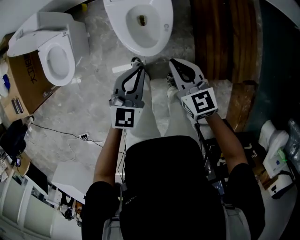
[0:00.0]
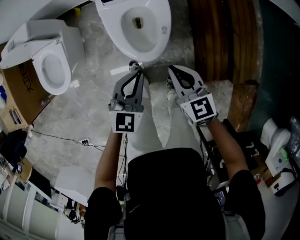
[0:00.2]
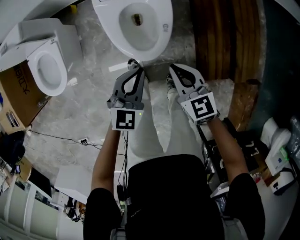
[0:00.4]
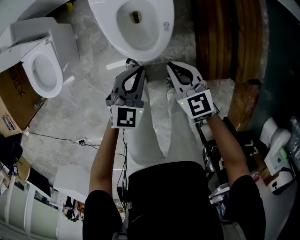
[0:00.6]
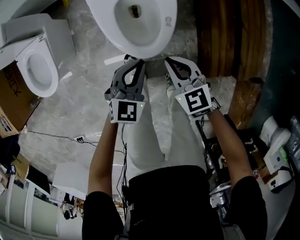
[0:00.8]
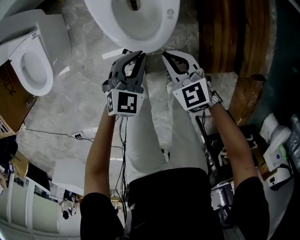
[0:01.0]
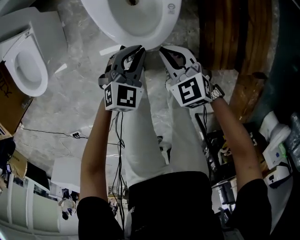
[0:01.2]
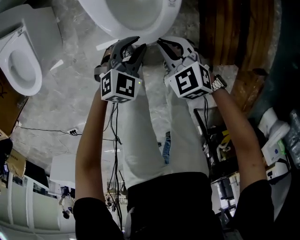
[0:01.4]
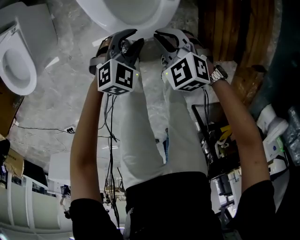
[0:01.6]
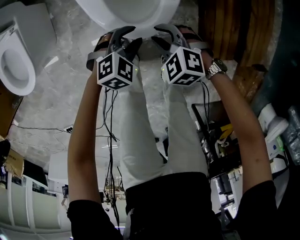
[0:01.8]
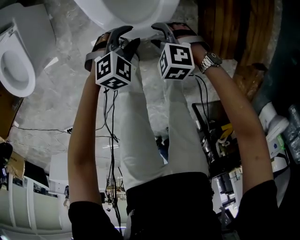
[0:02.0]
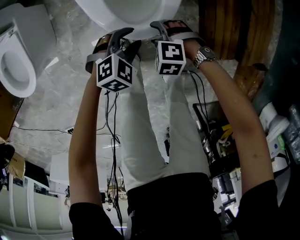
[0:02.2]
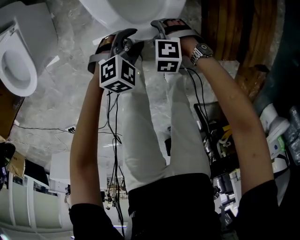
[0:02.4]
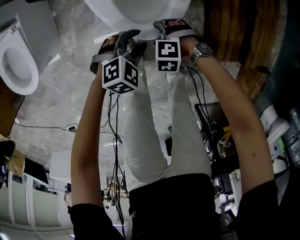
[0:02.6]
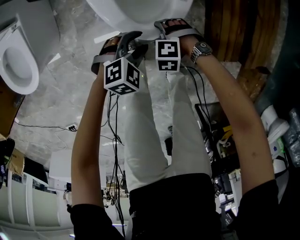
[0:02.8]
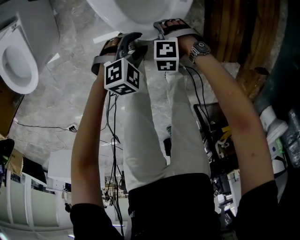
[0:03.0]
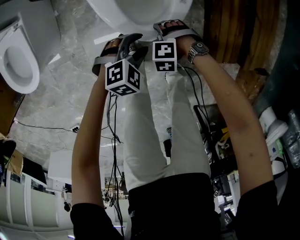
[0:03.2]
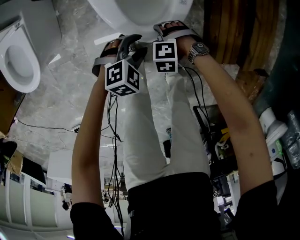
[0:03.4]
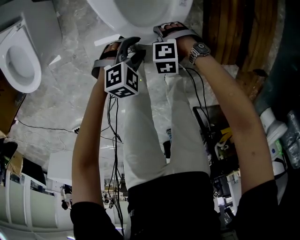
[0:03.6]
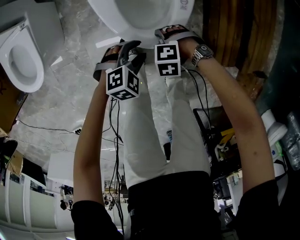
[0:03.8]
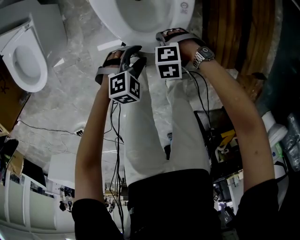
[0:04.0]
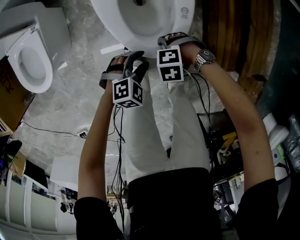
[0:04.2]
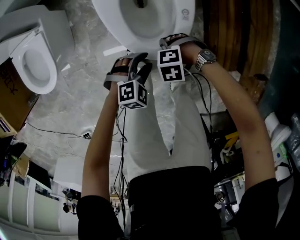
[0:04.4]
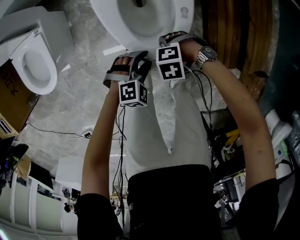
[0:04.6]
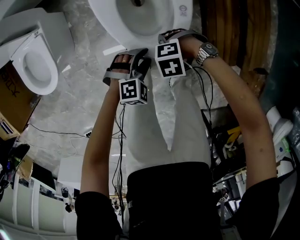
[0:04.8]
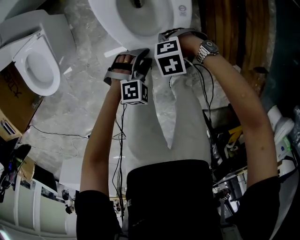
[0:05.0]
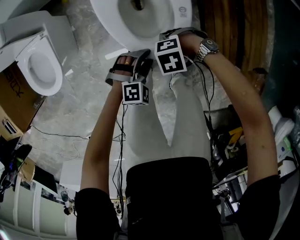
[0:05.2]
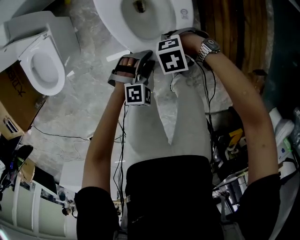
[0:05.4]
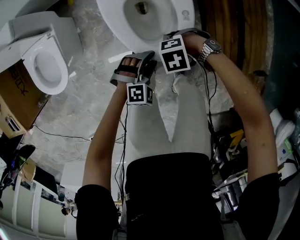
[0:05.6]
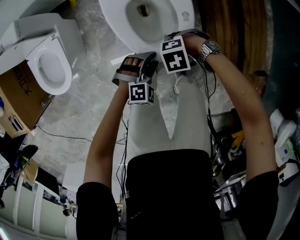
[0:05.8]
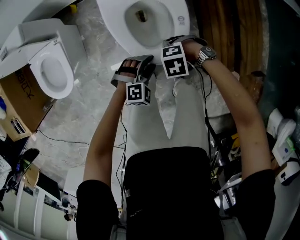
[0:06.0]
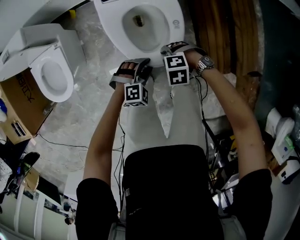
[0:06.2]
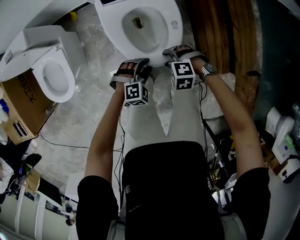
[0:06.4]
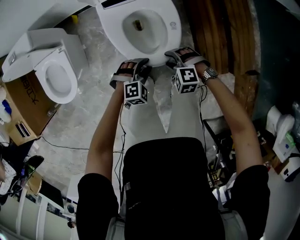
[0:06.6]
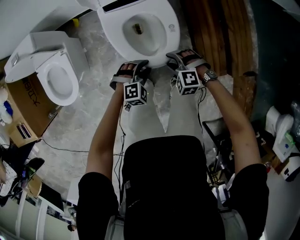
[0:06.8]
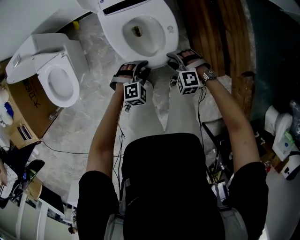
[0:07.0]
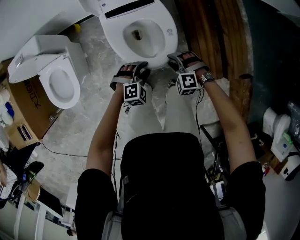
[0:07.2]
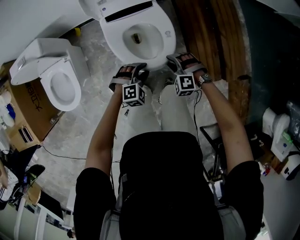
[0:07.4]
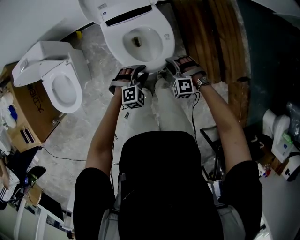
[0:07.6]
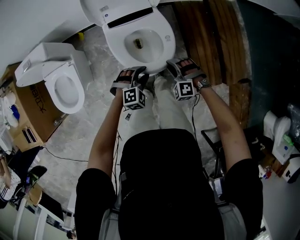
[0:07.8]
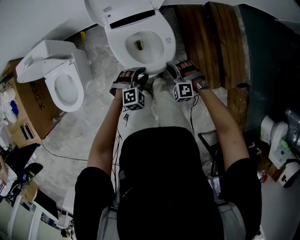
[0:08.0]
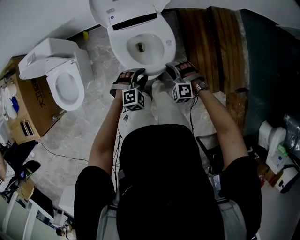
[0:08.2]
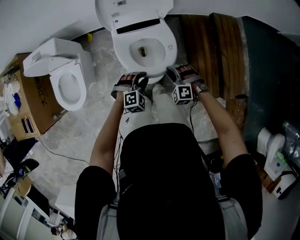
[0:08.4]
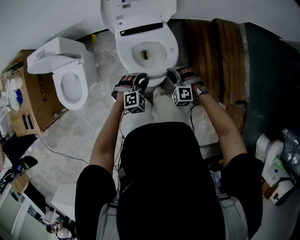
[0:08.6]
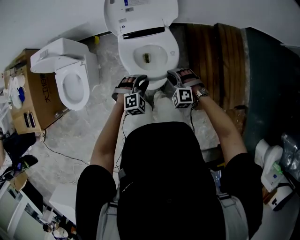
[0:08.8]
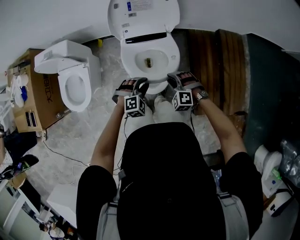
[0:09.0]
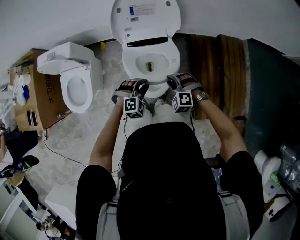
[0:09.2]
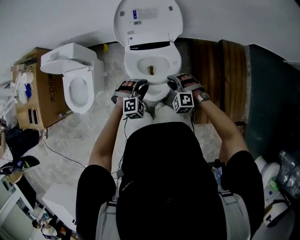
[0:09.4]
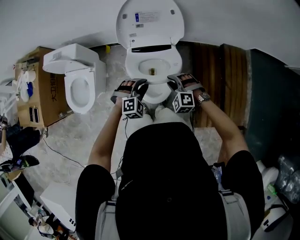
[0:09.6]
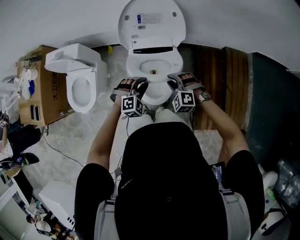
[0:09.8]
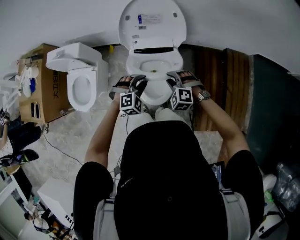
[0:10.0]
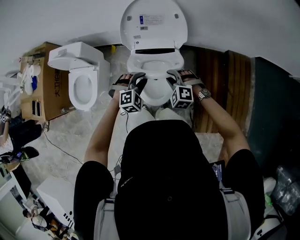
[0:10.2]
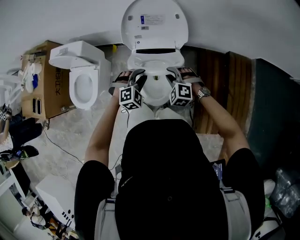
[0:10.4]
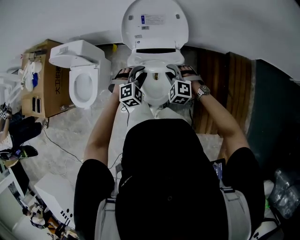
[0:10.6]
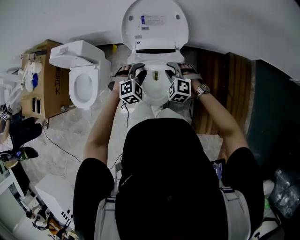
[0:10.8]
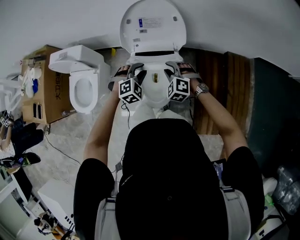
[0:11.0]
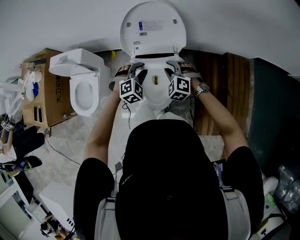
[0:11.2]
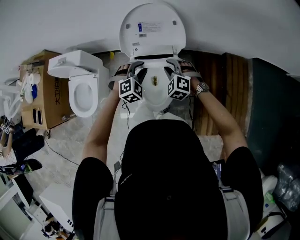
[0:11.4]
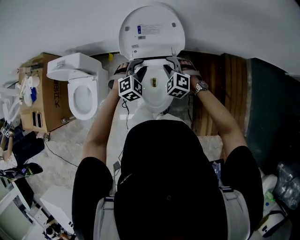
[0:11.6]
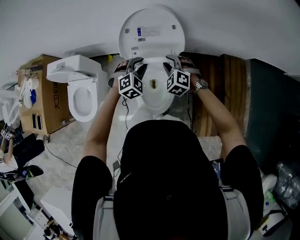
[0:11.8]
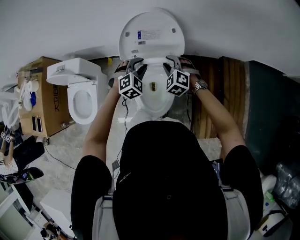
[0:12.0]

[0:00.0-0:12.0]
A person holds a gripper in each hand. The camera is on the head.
0.0 to 1.6 s: The grippers both shift downward by about 35 cm. The right gripper rotates approximately 40 degrees, while the left gripper turns by about 40 degrees, and opens.
1.6 to 3.0 s: The right gripper moves downward, approximately 15 cm, swivels about 40 degrees, and opens its fingers.
3.0 to 4.4 s: The right gripper shifts roughly 10 cm upward, while the left gripper travels upward by roughly 5 cm.
4.4 to 6.0 s: The grippers both shift upward by roughly 10 cm.
6.0 to 7.6 s: Both grippers travel together upward, approximately 10 cm. The right gripper turns by roughly 50 degrees, and closes.
7.6 to 9.0 s: The left gripper goes approximately 5 cm upward. Meanwhile the right gripper moves upward and forward, some 10 cm.
9.0 to 10.4 s: The two grippers go approximately 10 cm forward and upward.
10.4 to 12.0 s: The grippers both shift forward by about 15 cm.

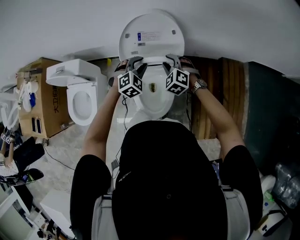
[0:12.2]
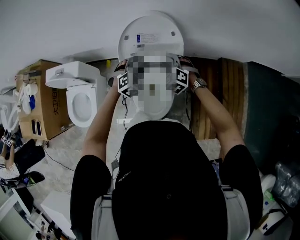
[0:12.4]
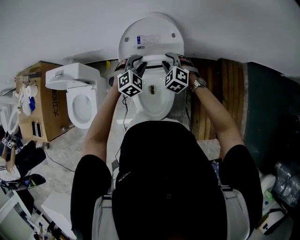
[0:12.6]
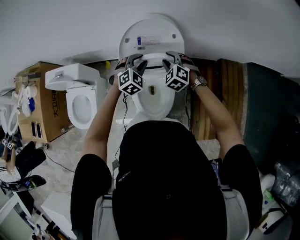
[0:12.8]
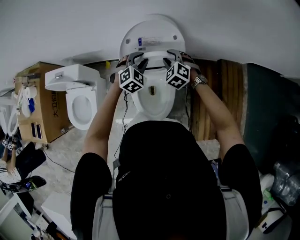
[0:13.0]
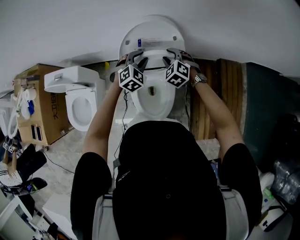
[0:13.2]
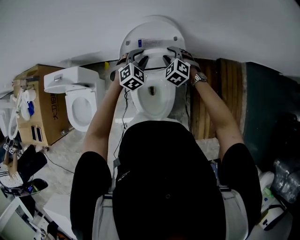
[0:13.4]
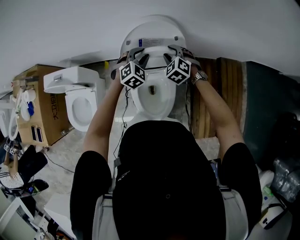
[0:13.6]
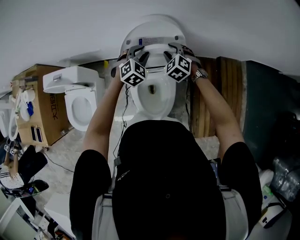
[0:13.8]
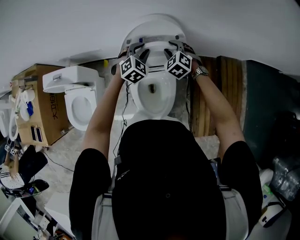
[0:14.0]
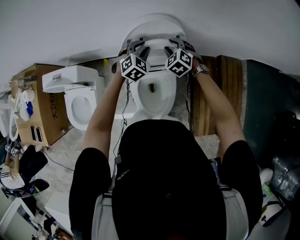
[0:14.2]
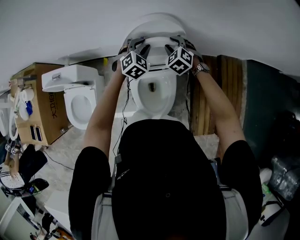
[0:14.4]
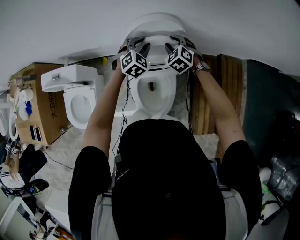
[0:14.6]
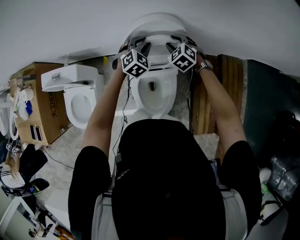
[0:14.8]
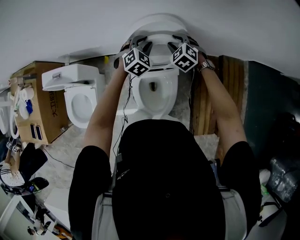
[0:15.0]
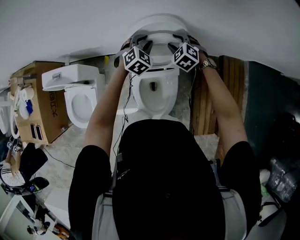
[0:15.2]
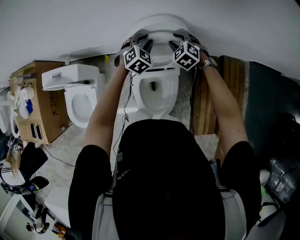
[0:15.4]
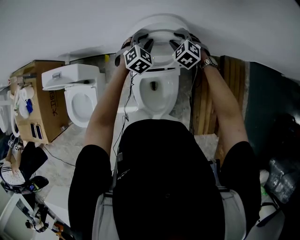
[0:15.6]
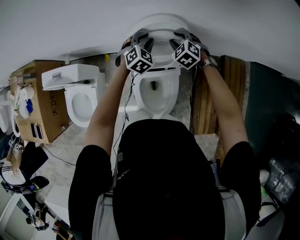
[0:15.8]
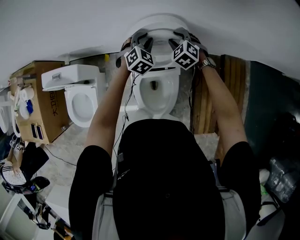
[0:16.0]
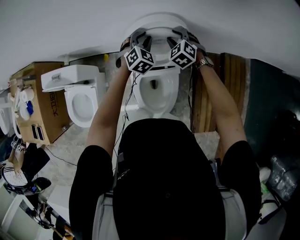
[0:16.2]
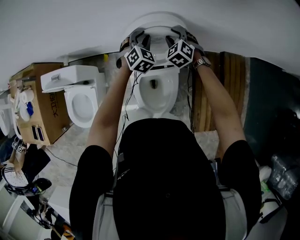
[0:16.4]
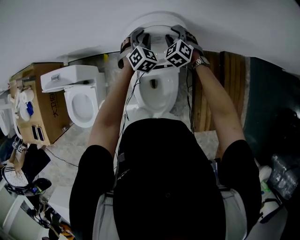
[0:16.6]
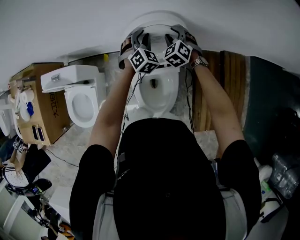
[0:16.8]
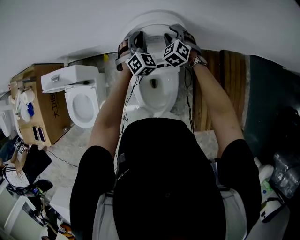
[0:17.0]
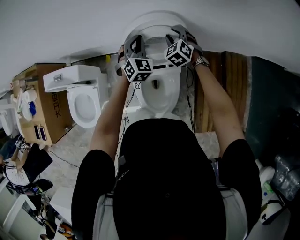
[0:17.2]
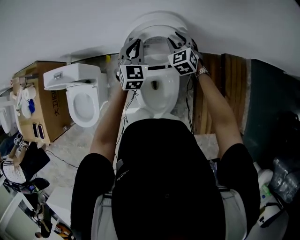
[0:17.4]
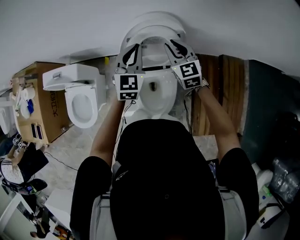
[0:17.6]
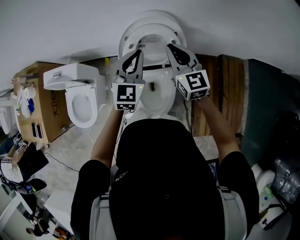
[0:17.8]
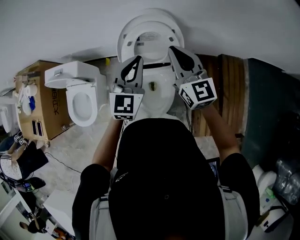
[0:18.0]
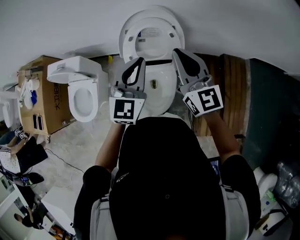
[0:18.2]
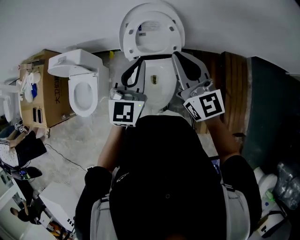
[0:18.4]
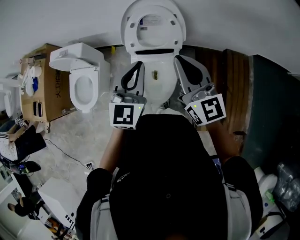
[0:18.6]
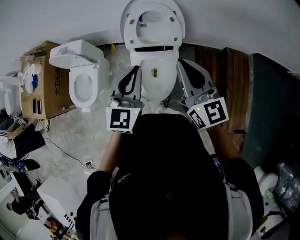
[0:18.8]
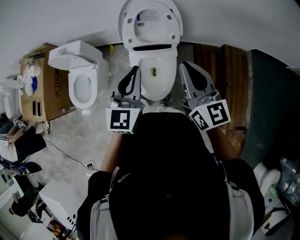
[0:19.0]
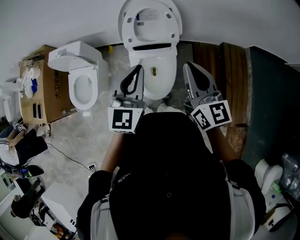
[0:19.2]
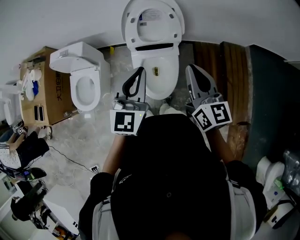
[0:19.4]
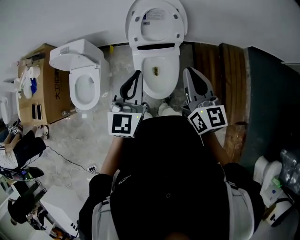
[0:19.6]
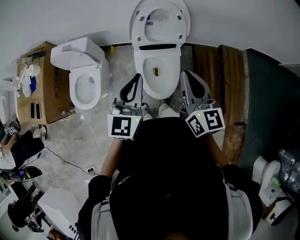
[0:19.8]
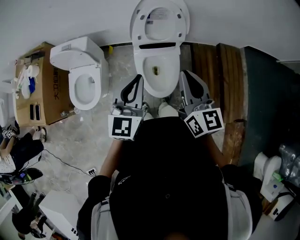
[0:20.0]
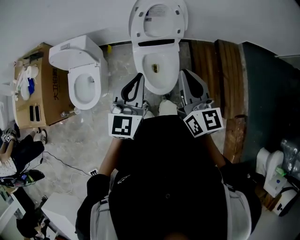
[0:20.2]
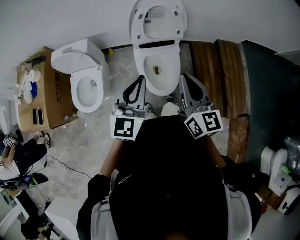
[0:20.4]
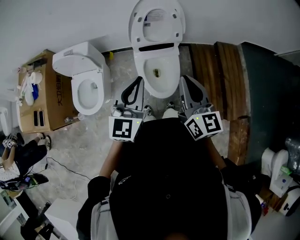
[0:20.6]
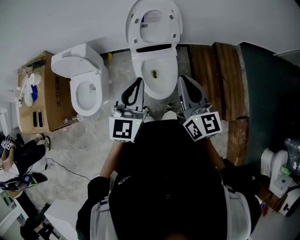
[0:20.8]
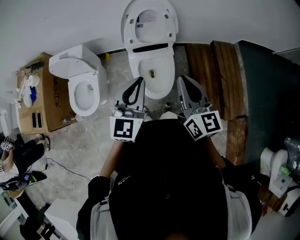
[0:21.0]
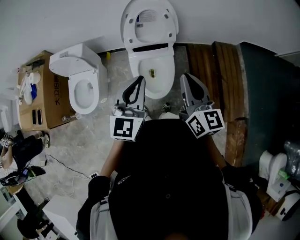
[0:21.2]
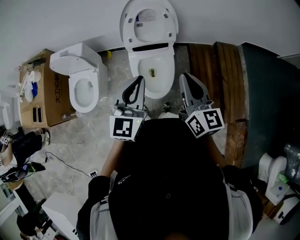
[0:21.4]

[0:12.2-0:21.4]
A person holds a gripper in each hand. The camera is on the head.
12.2 to 13.8 s: Both grippers move forward, some 10 cm.
13.8 to 15.2 s: Both grippers travel together forward, approximately 5 cm.
15.2 to 16.8 s: The grippers move only a little.
16.8 to 18.4 s: The two grippers go roughly 40 cm backward and upward. The right gripper tips its fingers upward by roughly 50 degrees, and closes; the left gripper swivels about 40 degrees, and closes up.
18.4 to 19.8 s: Both grippers travel together backward and to the left, roughly 20 cm.
19.8 to 21.4 s: Both grippers travel together to the right, approximately 10 cm.

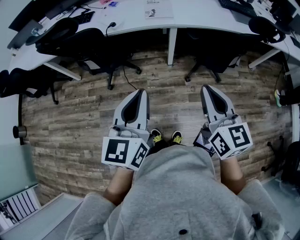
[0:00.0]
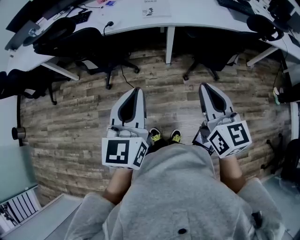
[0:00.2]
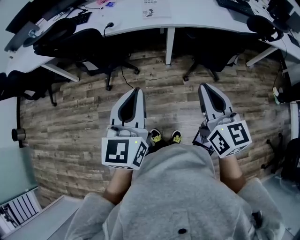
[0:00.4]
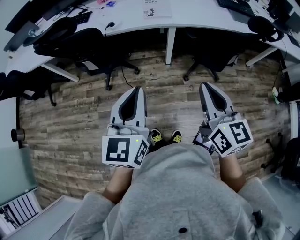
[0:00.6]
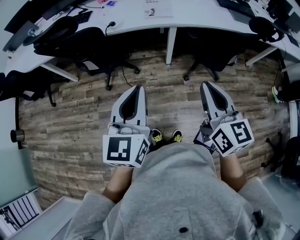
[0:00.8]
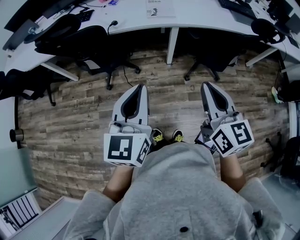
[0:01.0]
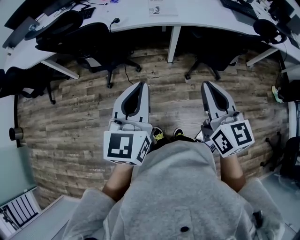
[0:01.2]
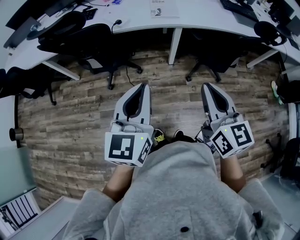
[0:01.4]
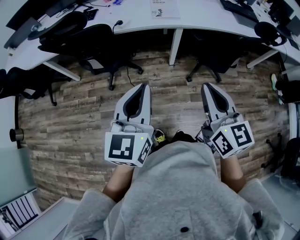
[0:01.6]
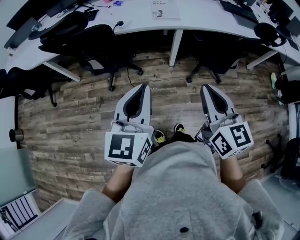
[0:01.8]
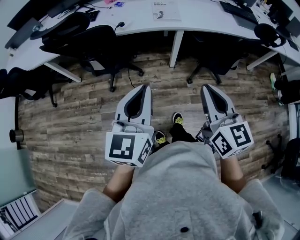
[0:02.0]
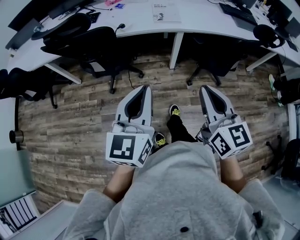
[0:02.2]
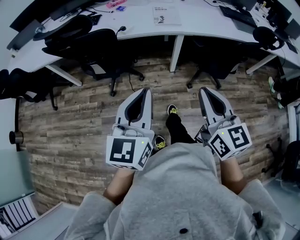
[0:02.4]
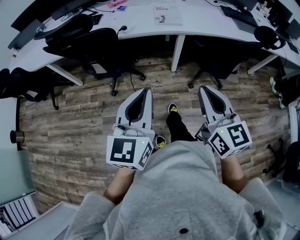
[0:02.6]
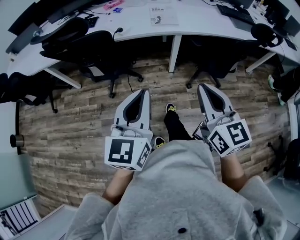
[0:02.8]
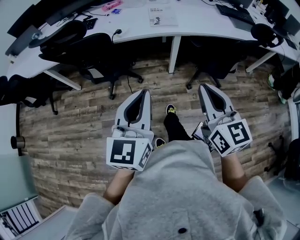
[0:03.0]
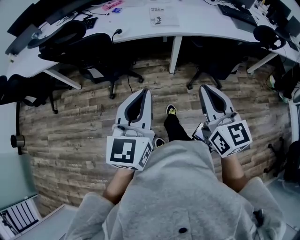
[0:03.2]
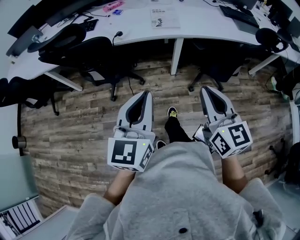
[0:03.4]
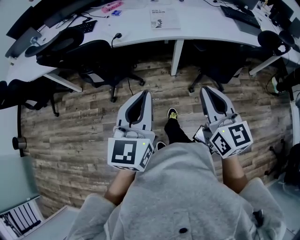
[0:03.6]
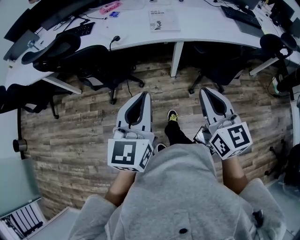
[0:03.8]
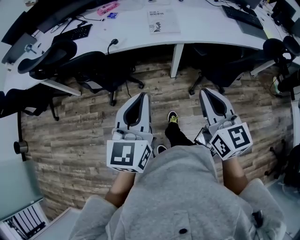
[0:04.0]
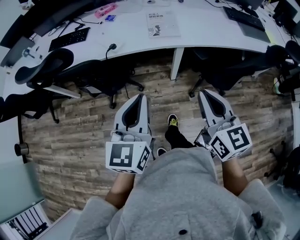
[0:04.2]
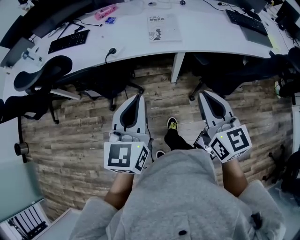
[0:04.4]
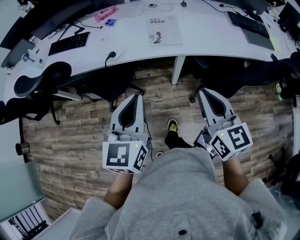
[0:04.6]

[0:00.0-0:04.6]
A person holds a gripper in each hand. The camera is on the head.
0.0 to 1.6 s: Both grippers travel together to the left, about 5 cm.
1.6 to 3.0 s: There are only small adjustments of the grippers.
3.0 to 4.6 s: The two grippers go some 20 cm forward.
